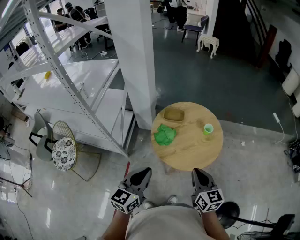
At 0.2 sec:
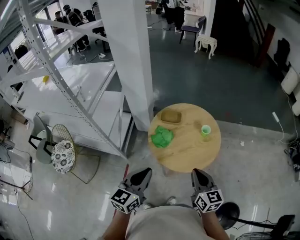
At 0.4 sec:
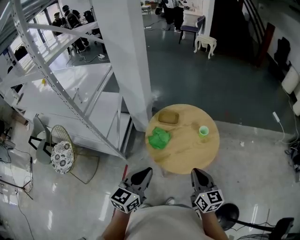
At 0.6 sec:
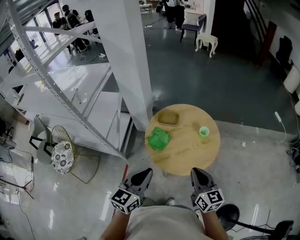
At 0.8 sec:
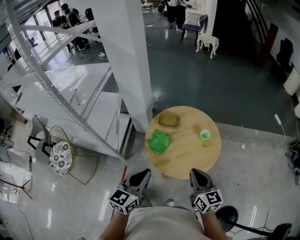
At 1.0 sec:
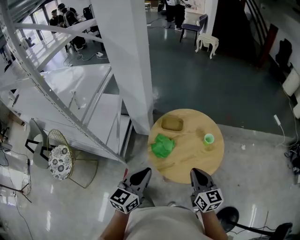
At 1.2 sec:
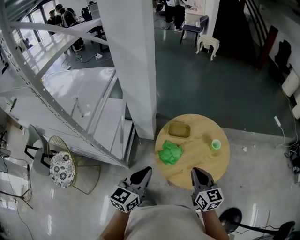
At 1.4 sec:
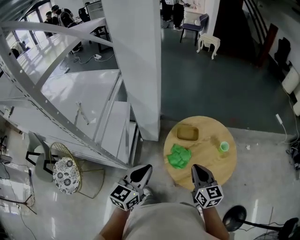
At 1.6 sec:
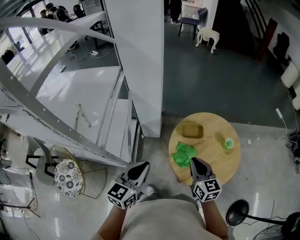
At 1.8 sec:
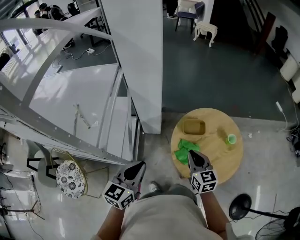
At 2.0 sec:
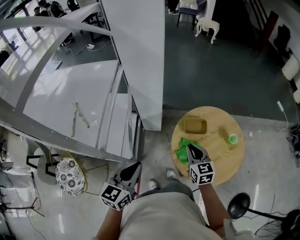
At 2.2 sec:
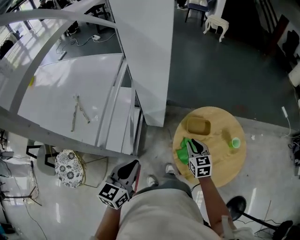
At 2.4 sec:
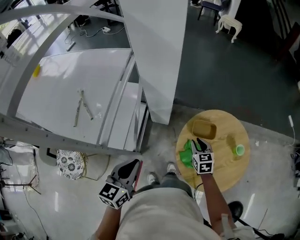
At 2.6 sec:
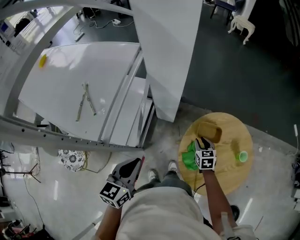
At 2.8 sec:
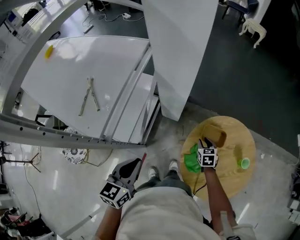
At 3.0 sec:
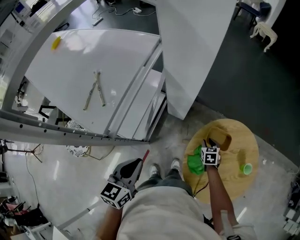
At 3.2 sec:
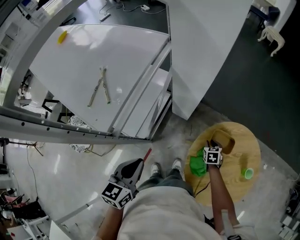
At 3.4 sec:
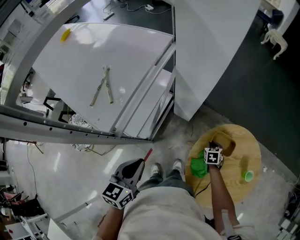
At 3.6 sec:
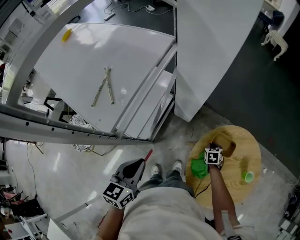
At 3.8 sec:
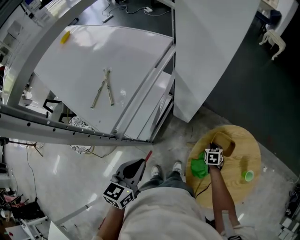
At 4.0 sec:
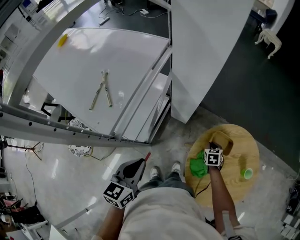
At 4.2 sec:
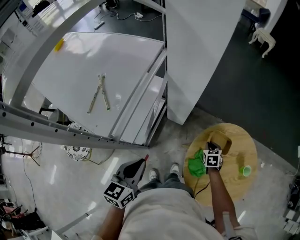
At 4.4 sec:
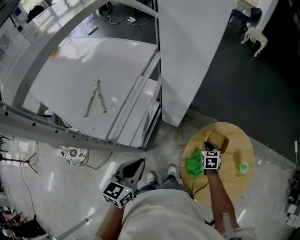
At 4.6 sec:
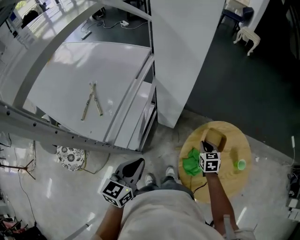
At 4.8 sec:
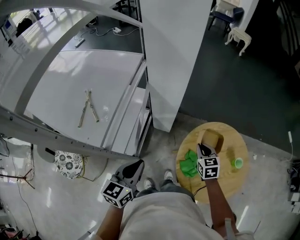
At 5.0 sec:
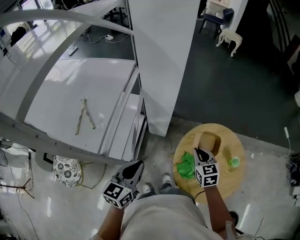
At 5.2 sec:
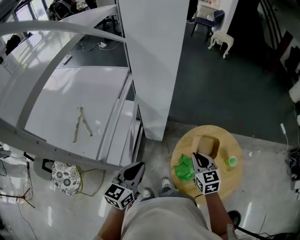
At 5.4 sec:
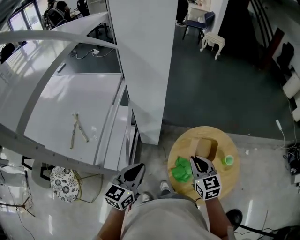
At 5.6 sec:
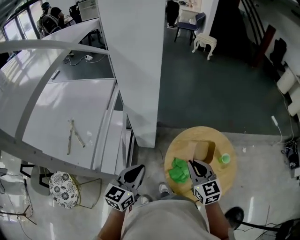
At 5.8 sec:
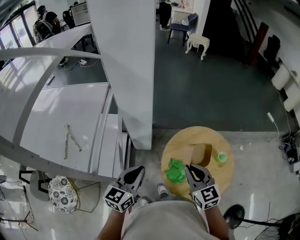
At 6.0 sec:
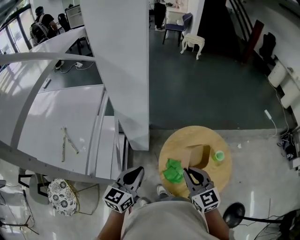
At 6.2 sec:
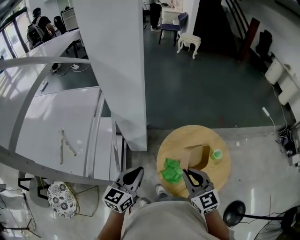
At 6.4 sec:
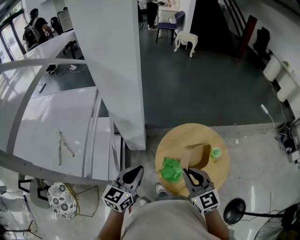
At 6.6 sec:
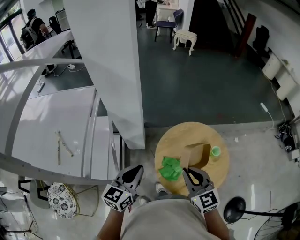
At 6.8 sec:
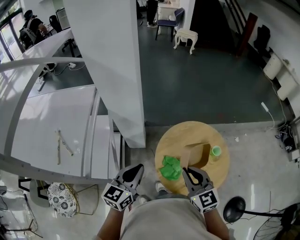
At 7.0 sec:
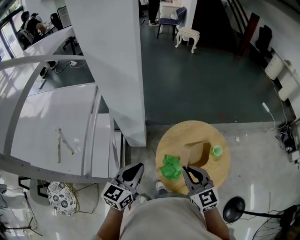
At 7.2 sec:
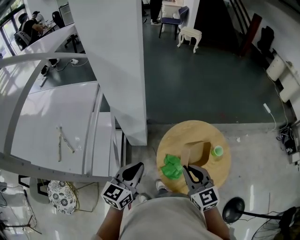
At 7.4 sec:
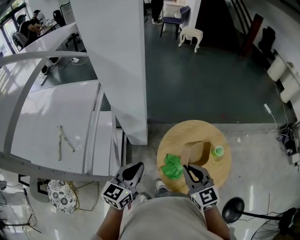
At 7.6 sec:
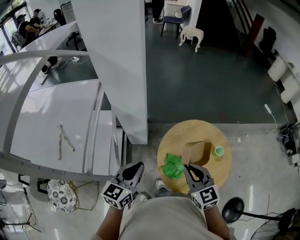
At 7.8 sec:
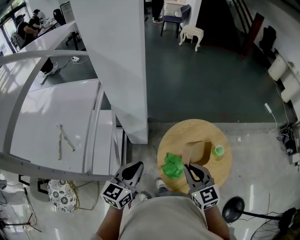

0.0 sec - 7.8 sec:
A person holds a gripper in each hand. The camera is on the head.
0.0 sec - 1.6 sec: The grippers both shift forward and to the left by about 30 cm.
1.6 sec - 3.2 sec: The left gripper is displaced to the left by approximately 10 cm, and changes its angle by about 30 degrees, while the right gripper goes roughly 35 cm downward and forward, angles its fingers downward, by roughly 40 degrees, and opens.
3.2 sec - 4.6 sec: The right gripper shifts roughly 15 cm upward.
4.6 sec - 6.2 sec: The left gripper heads to the right, covering about 10 cm, and swivels about 20 degrees. Meanwhile the right gripper travels upward and backward by some 30 cm, and turns by about 30 degrees.
6.2 sec - 7.8 sec: The grippers make only small movements.

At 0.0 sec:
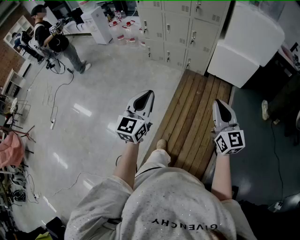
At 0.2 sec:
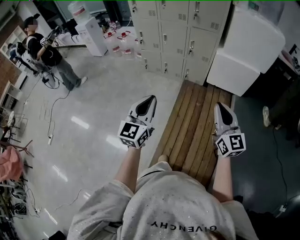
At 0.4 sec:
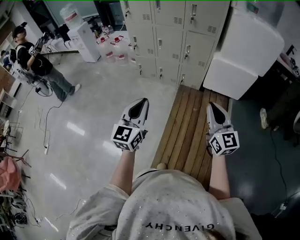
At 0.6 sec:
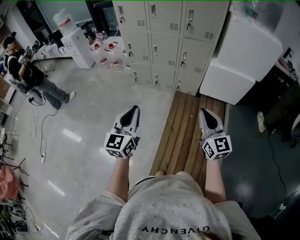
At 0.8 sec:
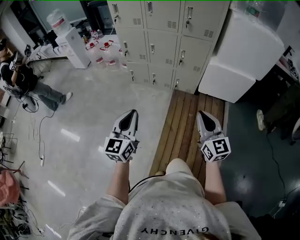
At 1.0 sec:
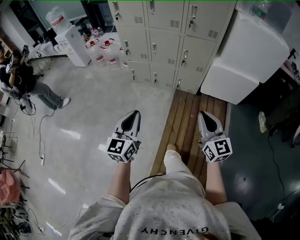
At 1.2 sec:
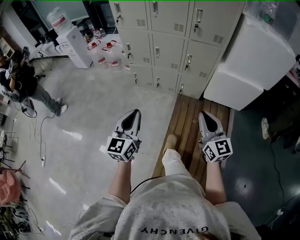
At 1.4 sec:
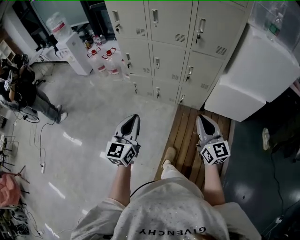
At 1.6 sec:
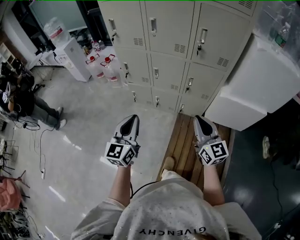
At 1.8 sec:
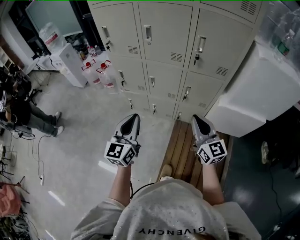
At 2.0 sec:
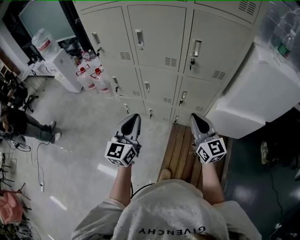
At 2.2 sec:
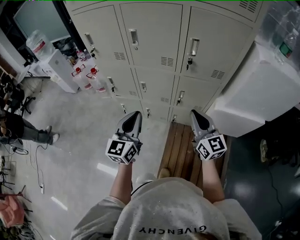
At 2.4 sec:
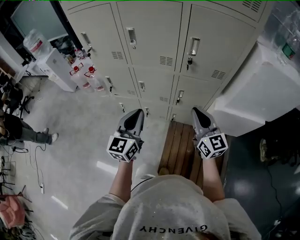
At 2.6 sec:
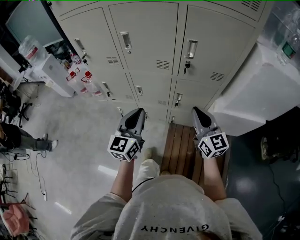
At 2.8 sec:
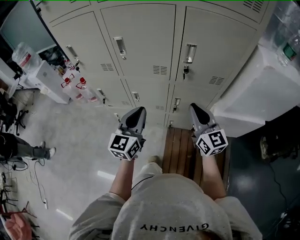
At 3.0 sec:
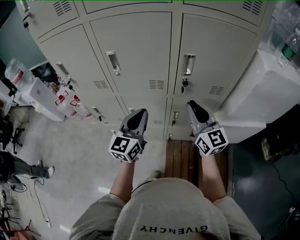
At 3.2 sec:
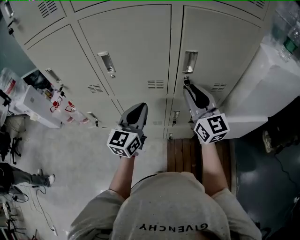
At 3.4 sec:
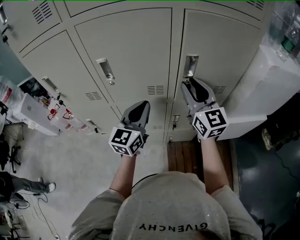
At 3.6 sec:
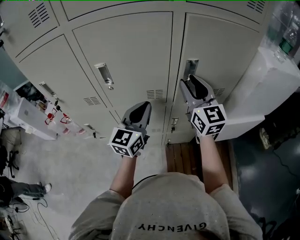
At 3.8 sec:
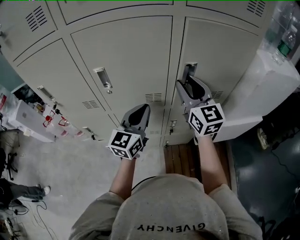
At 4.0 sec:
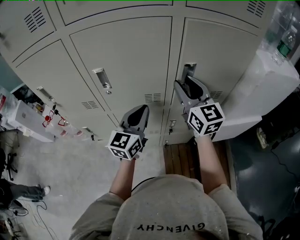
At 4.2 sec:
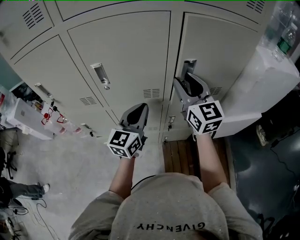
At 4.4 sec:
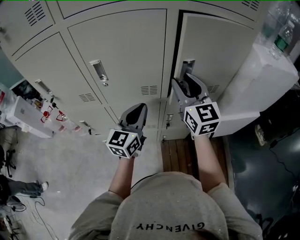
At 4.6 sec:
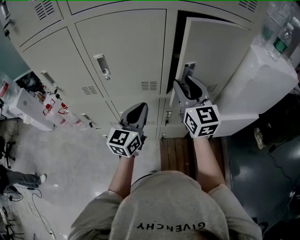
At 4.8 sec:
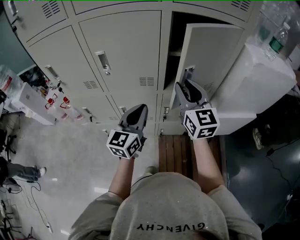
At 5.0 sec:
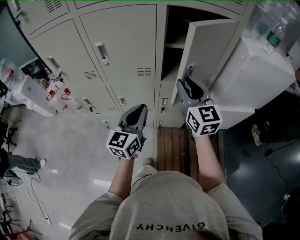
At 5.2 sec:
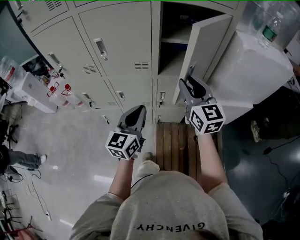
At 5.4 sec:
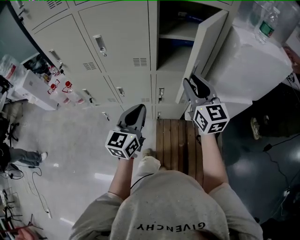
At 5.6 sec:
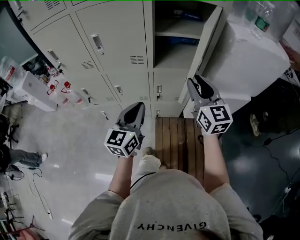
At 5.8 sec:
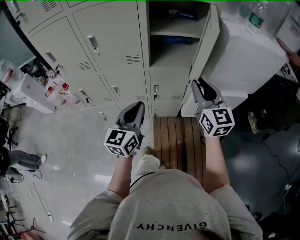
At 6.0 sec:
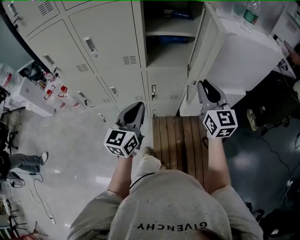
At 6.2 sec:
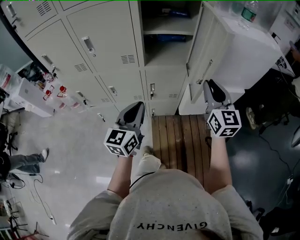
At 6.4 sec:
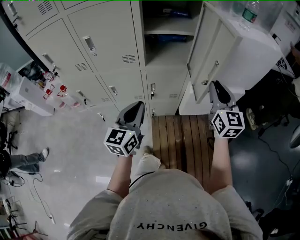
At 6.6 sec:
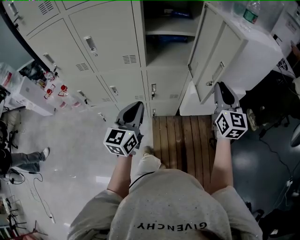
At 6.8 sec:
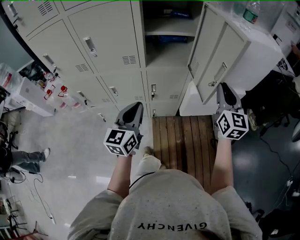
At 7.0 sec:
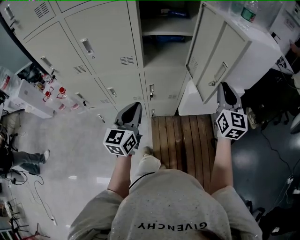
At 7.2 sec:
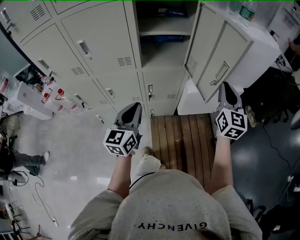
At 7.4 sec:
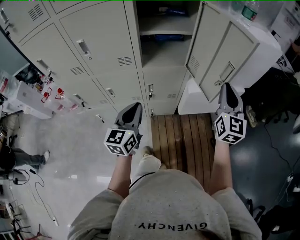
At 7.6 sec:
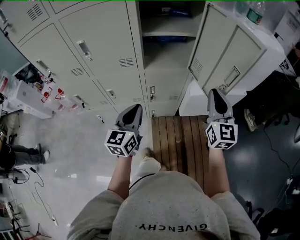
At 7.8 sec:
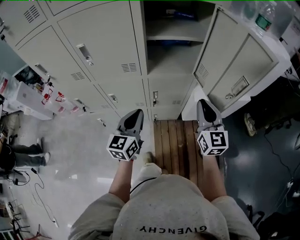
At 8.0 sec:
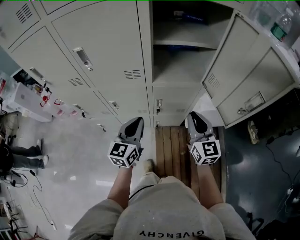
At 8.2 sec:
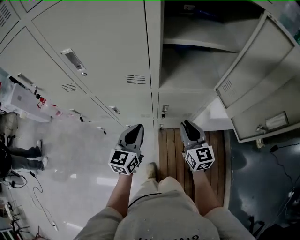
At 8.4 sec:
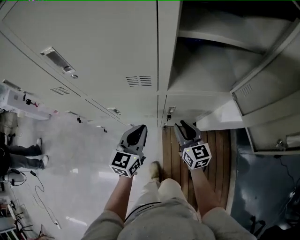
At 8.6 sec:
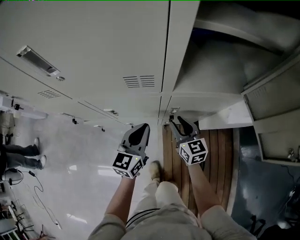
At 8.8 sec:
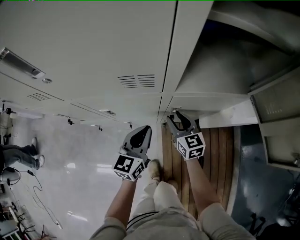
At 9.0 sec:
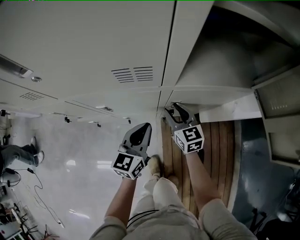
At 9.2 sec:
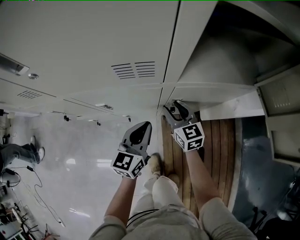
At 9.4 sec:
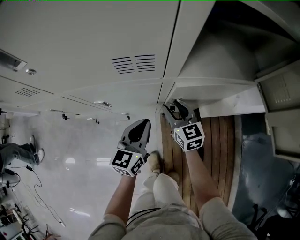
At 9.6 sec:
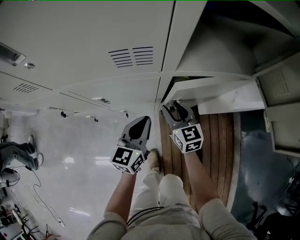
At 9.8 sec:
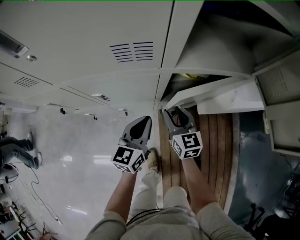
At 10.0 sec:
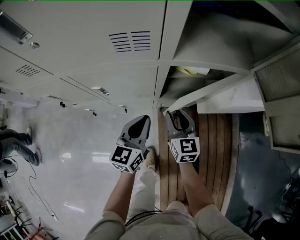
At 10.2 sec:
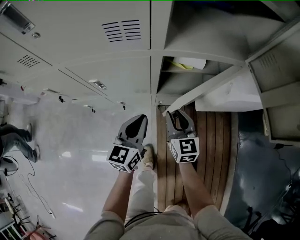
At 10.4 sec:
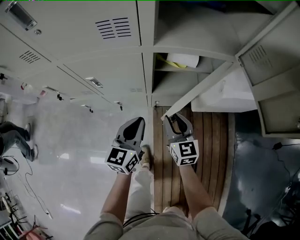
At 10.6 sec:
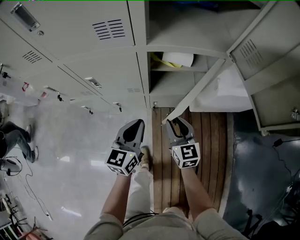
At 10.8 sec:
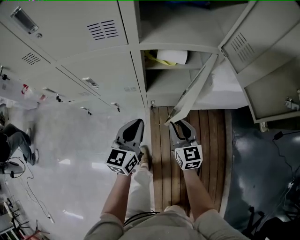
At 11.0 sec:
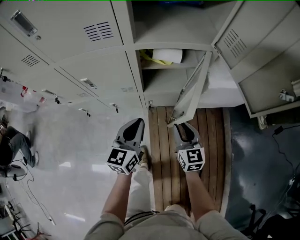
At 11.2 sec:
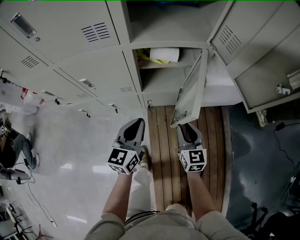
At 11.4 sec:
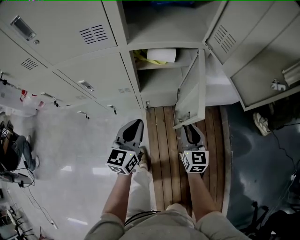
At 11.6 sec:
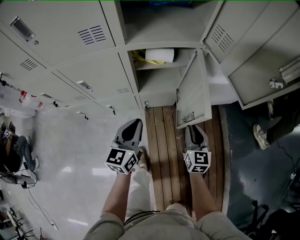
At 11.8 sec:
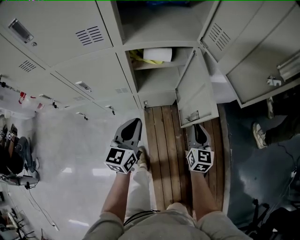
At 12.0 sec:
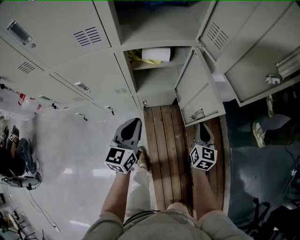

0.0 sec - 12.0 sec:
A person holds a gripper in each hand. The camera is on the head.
0.0 sec - 1.6 sec: The two grippers travel together, forward, some 50 cm.
1.6 sec - 3.0 sec: The two grippers go about 35 cm forward. The left gripper swivels approximately 20 degrees.
3.0 sec - 4.4 sec: The left gripper is displaced forward by some 10 cm. Meanwhile the right gripper moves forward and upward, approximately 10 cm, and opens up.
4.4 sec - 6.0 sec: The left gripper moves backward and to the right, some 25 cm. The right gripper goes about 30 cm to the right and backward.
6.0 sec - 7.6 sec: The left gripper moves approximately 5 cm.
7.6 sec - 9.0 sec: The left gripper shifts approximately 35 cm downward and forward. The right gripper goes roughly 60 cm downward, to the left and forward, swivels roughly 40 degrees, and opens up.
9.0 sec - 10.4 sec: The left gripper is displaced backward by roughly 10 cm, while the right gripper moves backward and to the right, approximately 15 cm.
10.4 sec - 12.0 sec: The left gripper goes roughly 5 cm to the right. The right gripper moves to the right, approximately 25 cm, turns by about 30 degrees, and closes its fingers.

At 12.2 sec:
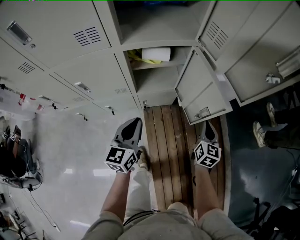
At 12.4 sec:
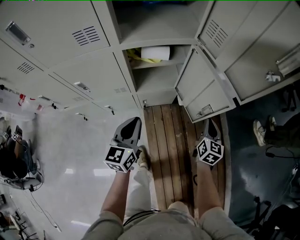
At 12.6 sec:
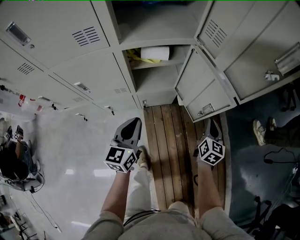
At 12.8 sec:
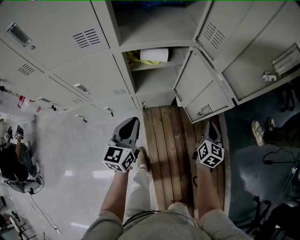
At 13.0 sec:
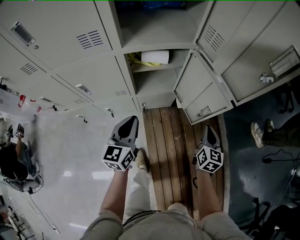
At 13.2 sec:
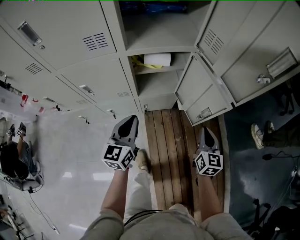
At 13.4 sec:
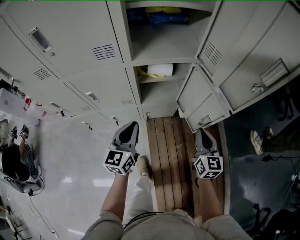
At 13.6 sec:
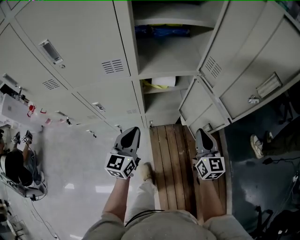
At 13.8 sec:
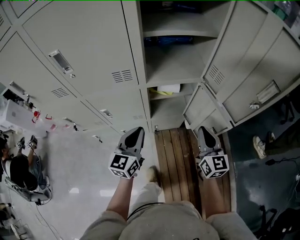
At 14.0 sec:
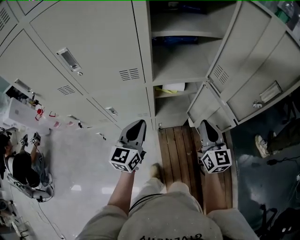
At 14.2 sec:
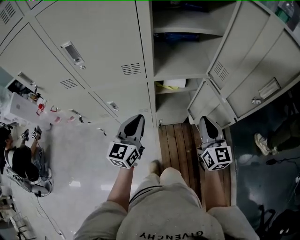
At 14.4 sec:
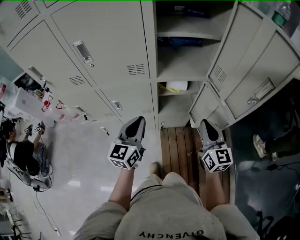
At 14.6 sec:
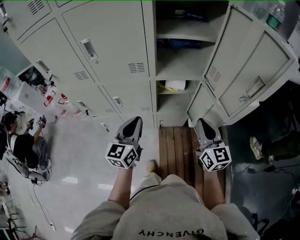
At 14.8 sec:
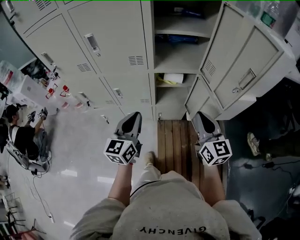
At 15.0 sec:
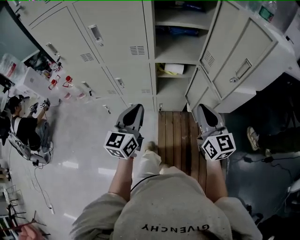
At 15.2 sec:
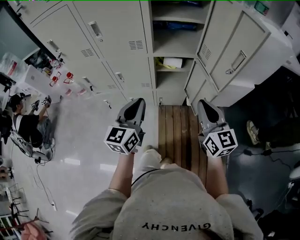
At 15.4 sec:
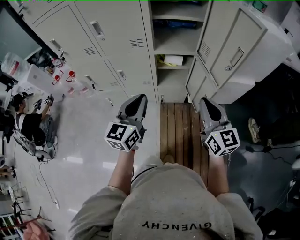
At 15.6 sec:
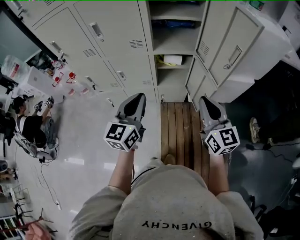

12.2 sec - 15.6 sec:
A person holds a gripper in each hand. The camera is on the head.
12.2 sec - 13.8 sec: The left gripper travels upward and to the left by approximately 15 cm; the right gripper heads upward and to the left, covering roughly 25 cm, and rotates roughly 30 degrees.
13.8 sec - 15.6 sec: Both grippers move upward and backward, some 25 cm.
